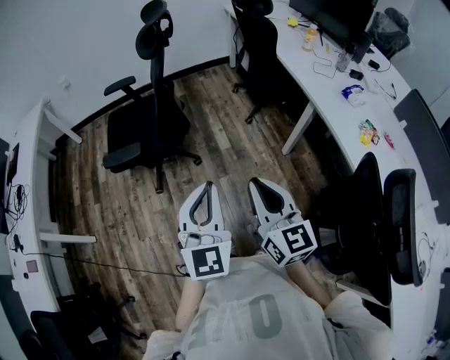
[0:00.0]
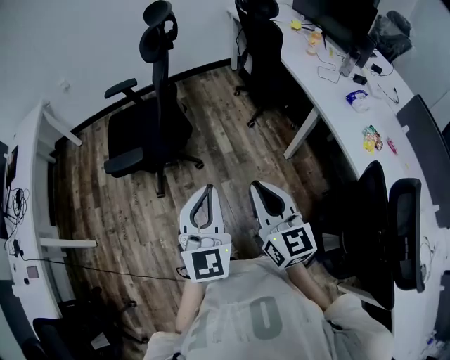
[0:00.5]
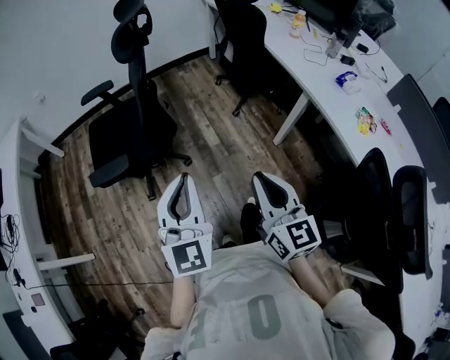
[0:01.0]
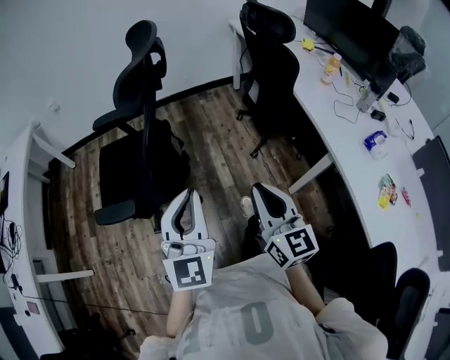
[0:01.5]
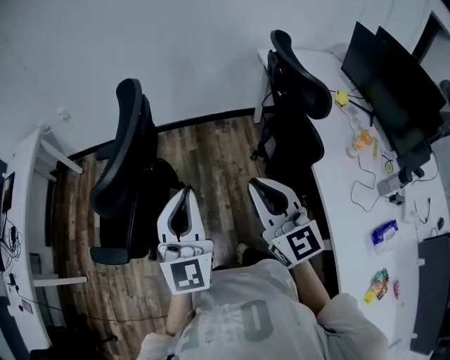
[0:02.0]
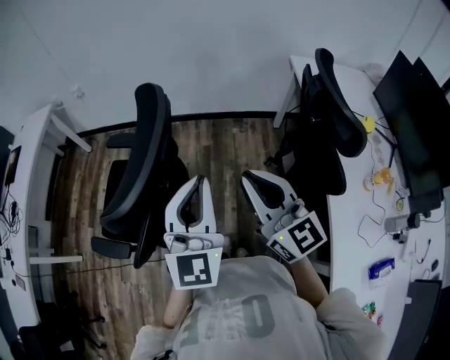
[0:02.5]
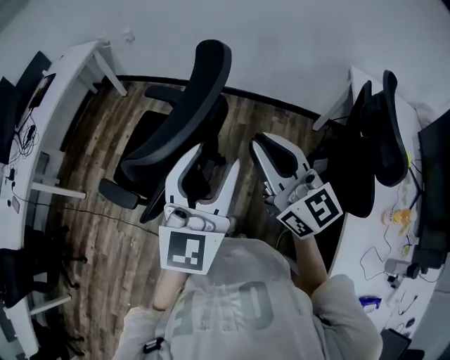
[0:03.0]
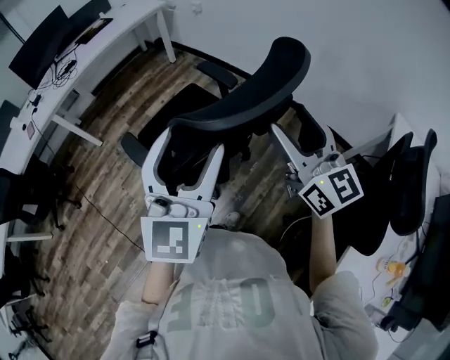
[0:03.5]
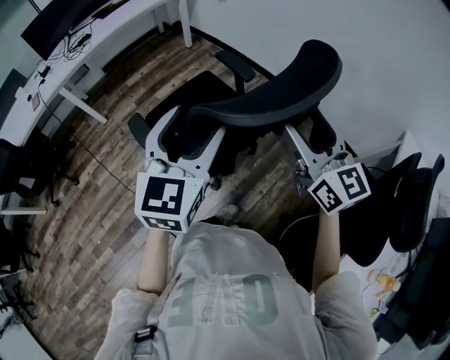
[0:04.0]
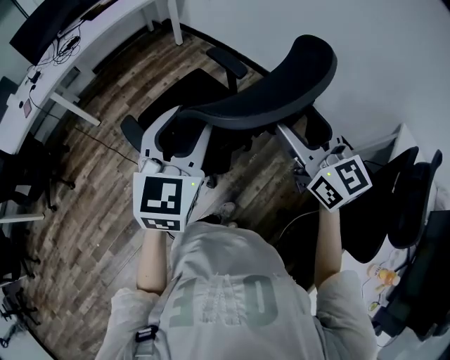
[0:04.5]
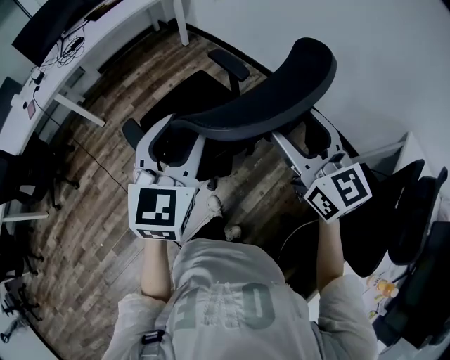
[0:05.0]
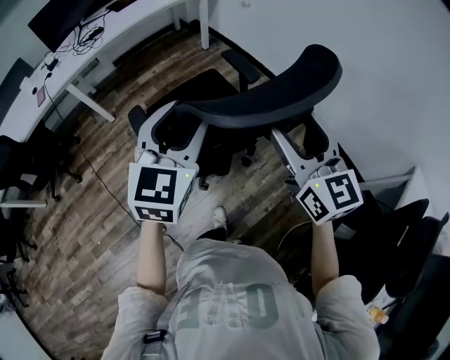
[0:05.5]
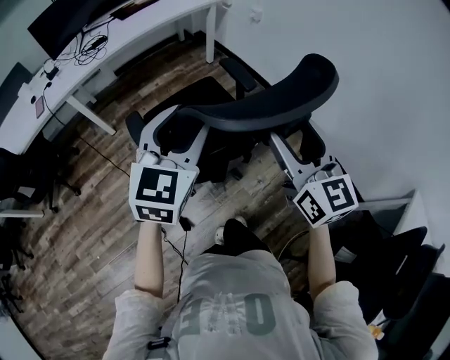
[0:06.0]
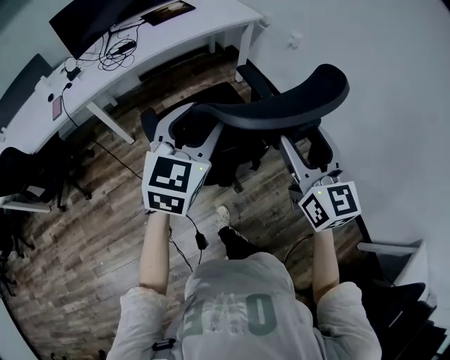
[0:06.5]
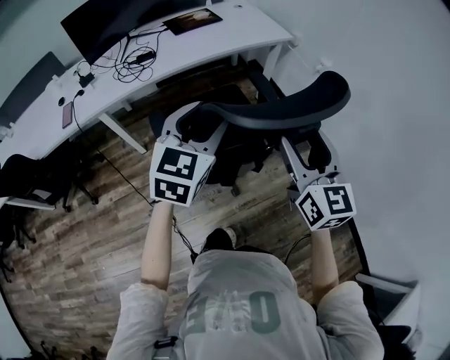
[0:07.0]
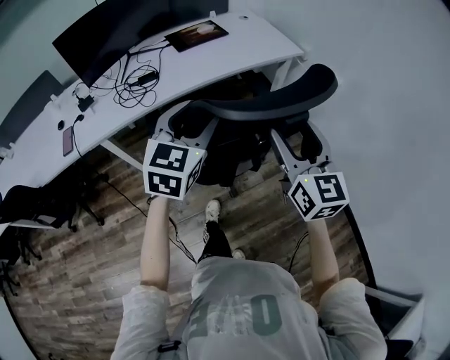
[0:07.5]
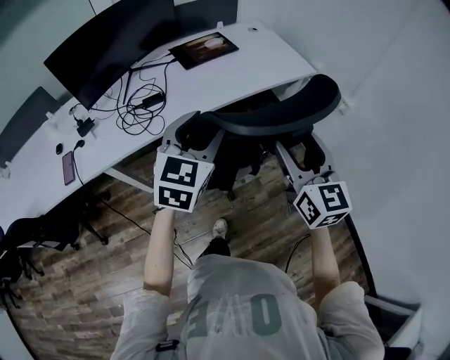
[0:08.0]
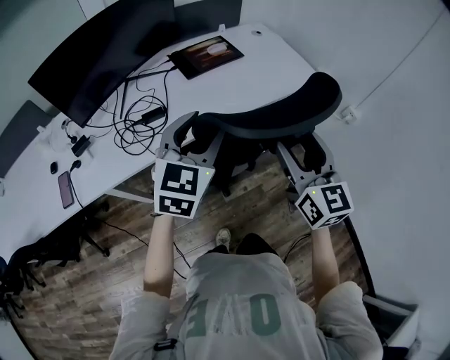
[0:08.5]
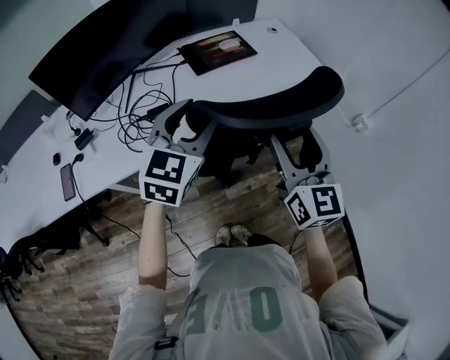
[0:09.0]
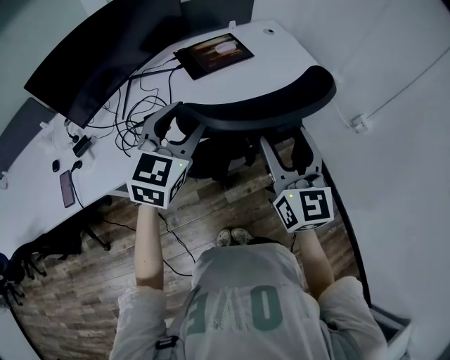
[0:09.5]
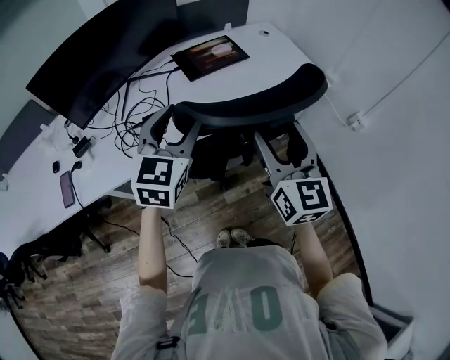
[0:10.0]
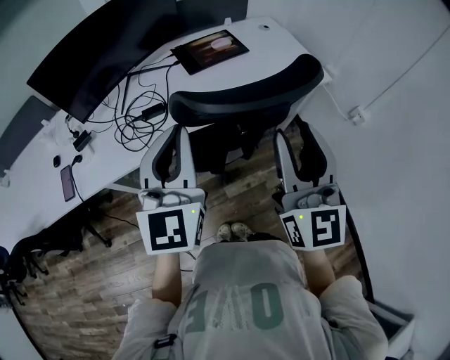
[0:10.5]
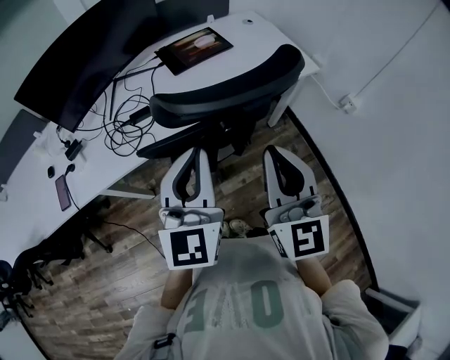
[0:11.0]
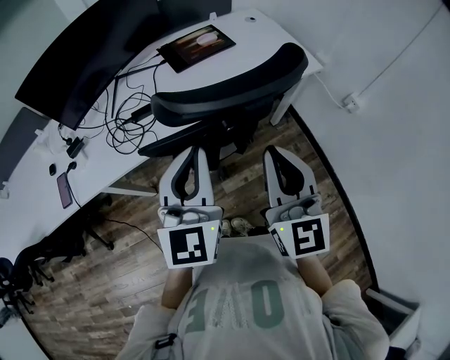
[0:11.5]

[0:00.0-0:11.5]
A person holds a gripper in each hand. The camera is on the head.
0:00.0 to 0:02.0: The pair of grippers is taken forward, about 50 cm. The right gripper changes its angle by some 20 degrees.
0:02.0 to 0:04.0: The left gripper changes place by roughly 20 cm, turns by roughly 40 degrees, and opens up. Meanwhile the right gripper moves approximately 25 cm, rotates approximately 50 degrees, and opens.
0:04.0 to 0:06.0: Both grippers travel together forward and to the left, some 25 cm.
0:06.0 to 0:07.5: The pair of grippers is taken forward and to the left, about 50 cm.
0:07.5 to 0:09.5: Both grippers travel together forward and to the left, about 30 cm.
0:09.5 to 0:11.5: The left gripper goes roughly 15 cm backward and to the right, changes its angle by some 20 degrees, and closes up. Meanwhile the right gripper travels backward by approximately 10 cm, and closes its fingers.

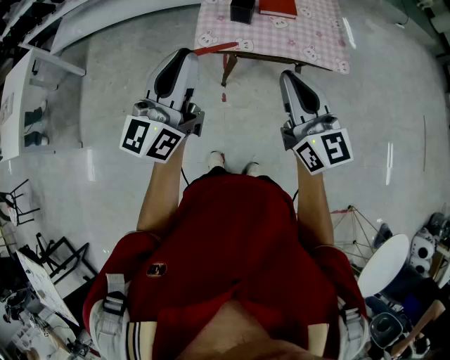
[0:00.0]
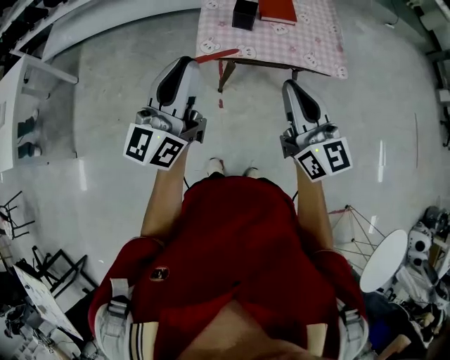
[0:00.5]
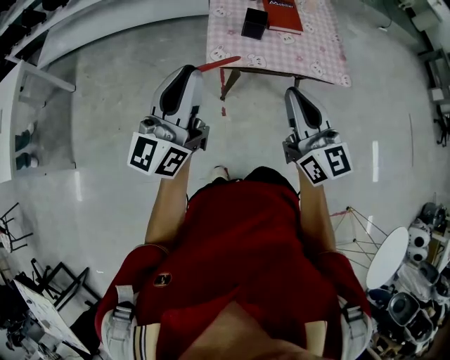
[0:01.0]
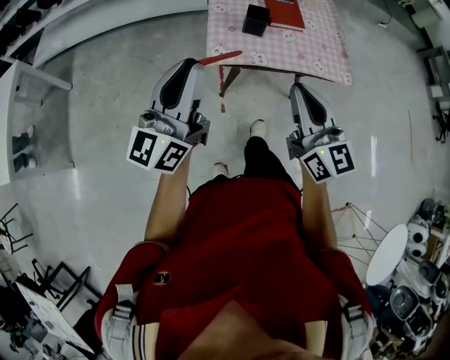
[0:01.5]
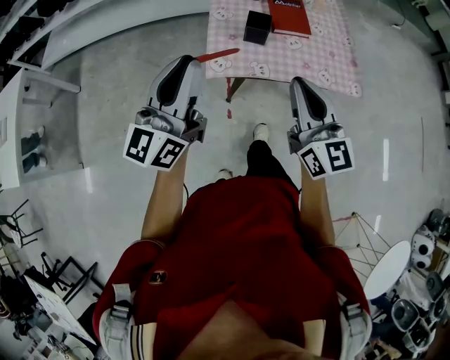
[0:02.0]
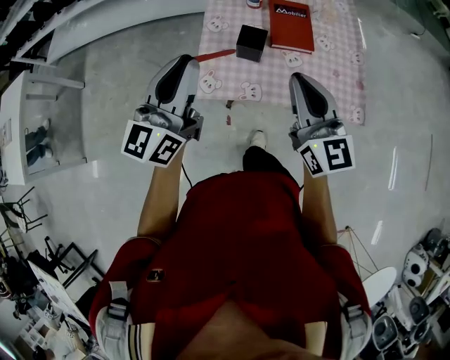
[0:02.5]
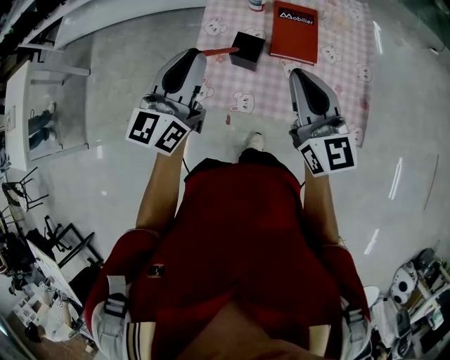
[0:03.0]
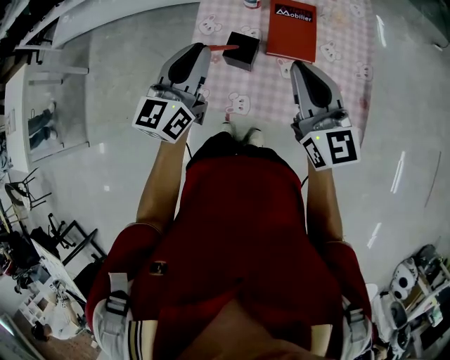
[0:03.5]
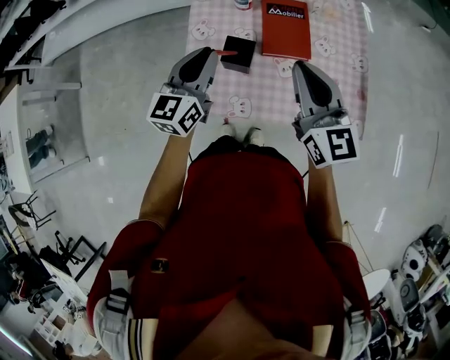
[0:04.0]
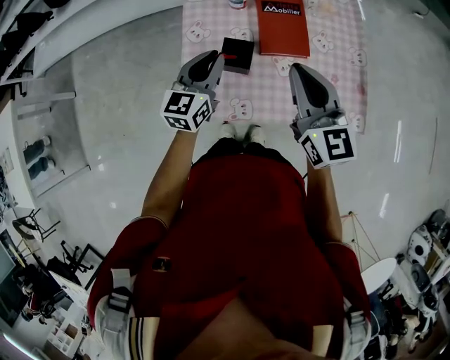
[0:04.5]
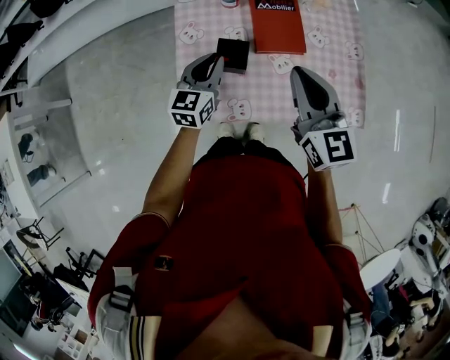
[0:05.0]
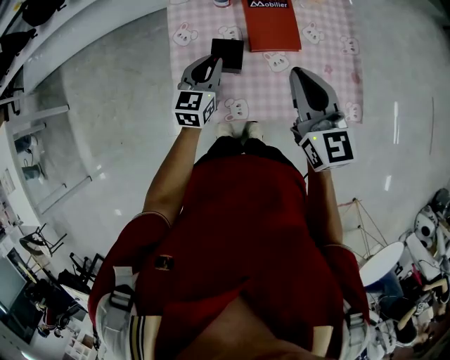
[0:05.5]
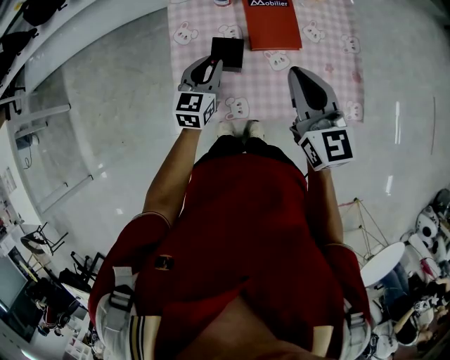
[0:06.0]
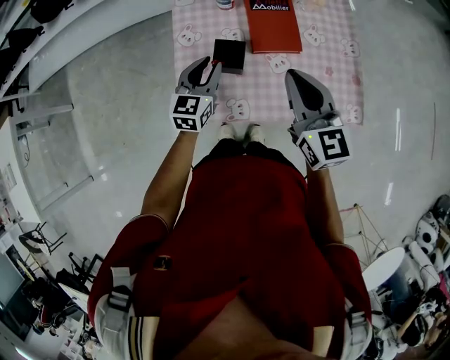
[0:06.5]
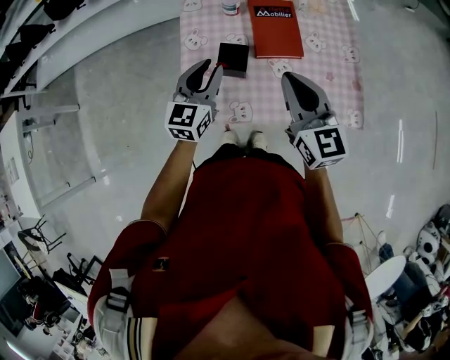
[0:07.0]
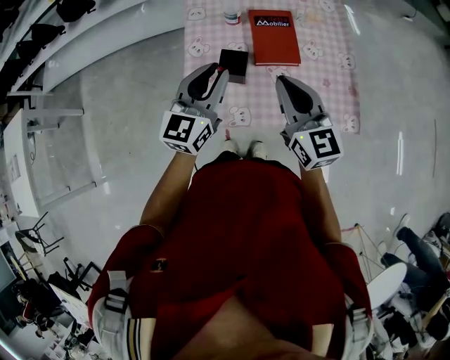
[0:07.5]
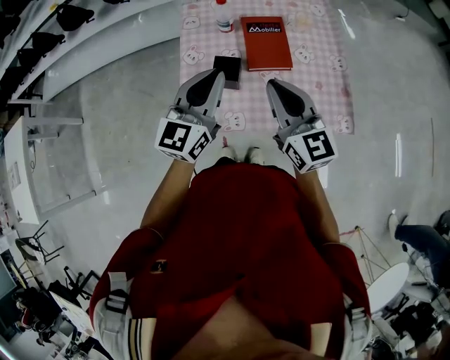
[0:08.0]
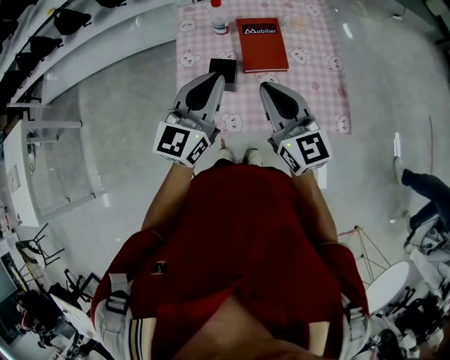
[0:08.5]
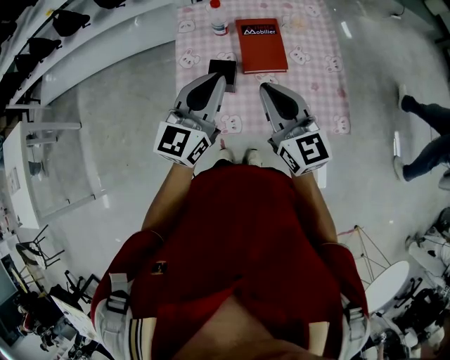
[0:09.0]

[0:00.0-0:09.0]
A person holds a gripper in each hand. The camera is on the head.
0:00.0 to 0:02.0: The grippers both shift forward and to the left by about 15 cm.
0:02.0 to 0:04.5: The left gripper shifts some 40 cm forward, downward and to the right, and angles its fingers downward, by about 30 degrees, while the right gripper heads forward, covering approximately 30 cm.
0:04.5 to 0:07.0: The left gripper travels downward and back again, roughly 10 cm each way.
0:07.0 to 0:09.0: The right gripper changes place by roughly 5 cm. The left gripper travels upward and to the right by about 15 cm.

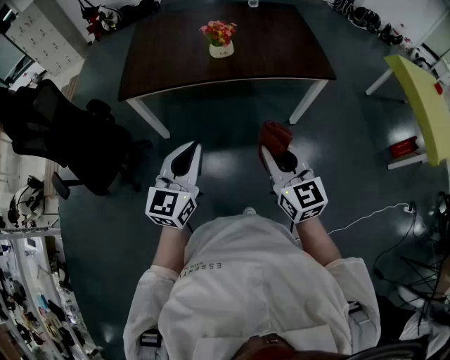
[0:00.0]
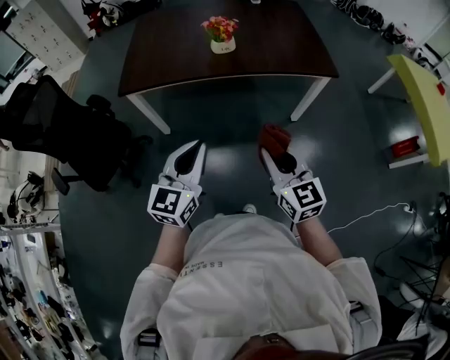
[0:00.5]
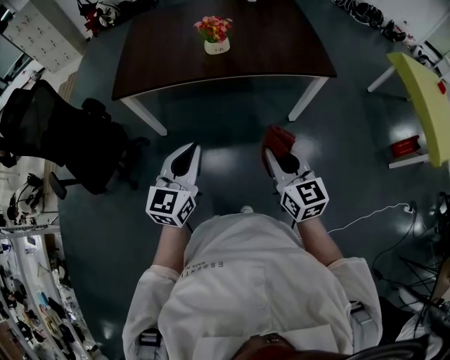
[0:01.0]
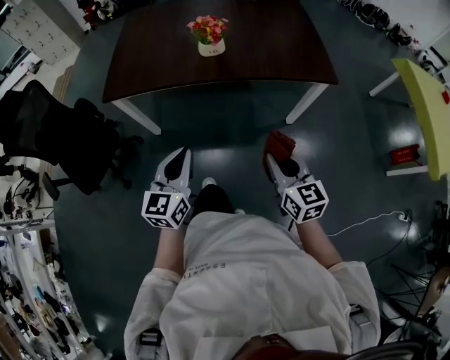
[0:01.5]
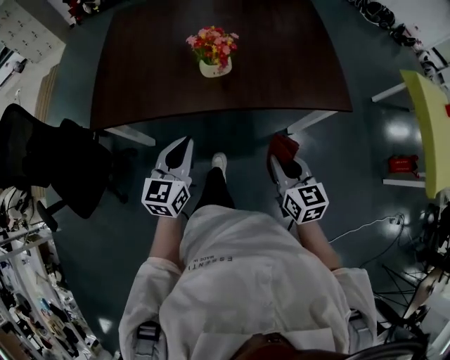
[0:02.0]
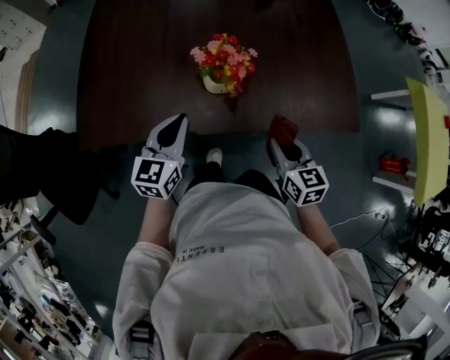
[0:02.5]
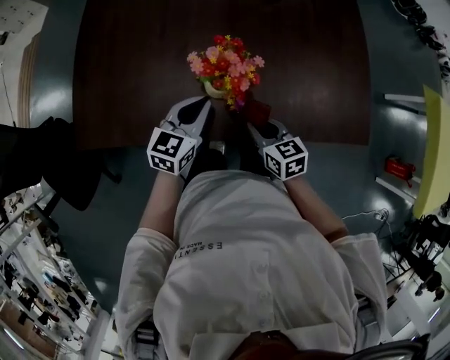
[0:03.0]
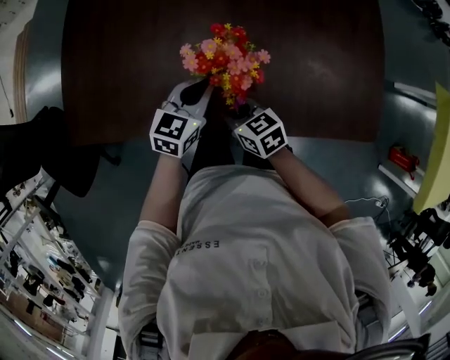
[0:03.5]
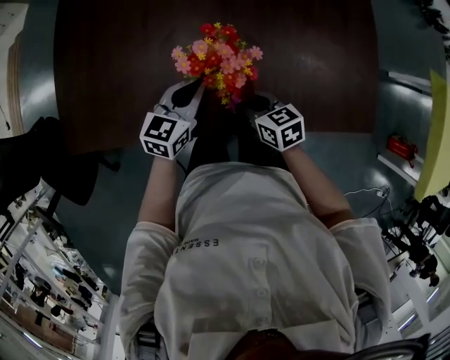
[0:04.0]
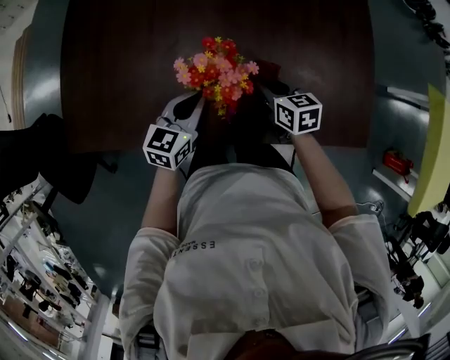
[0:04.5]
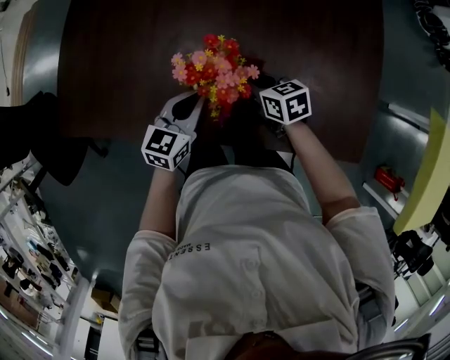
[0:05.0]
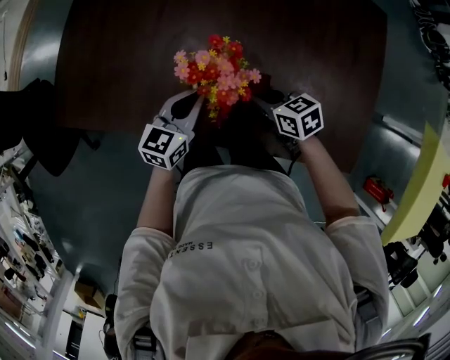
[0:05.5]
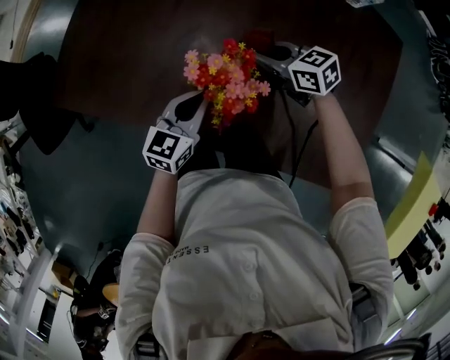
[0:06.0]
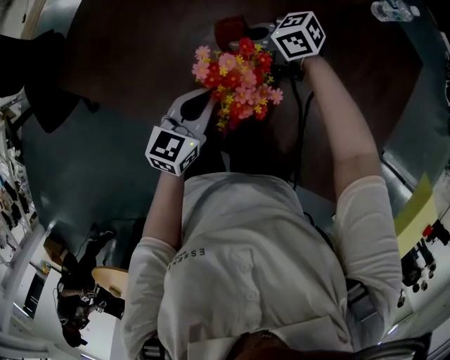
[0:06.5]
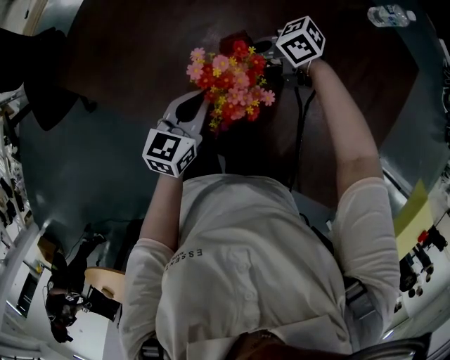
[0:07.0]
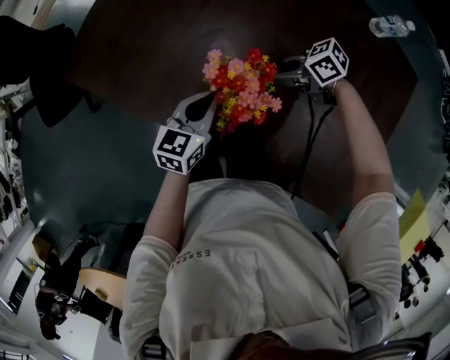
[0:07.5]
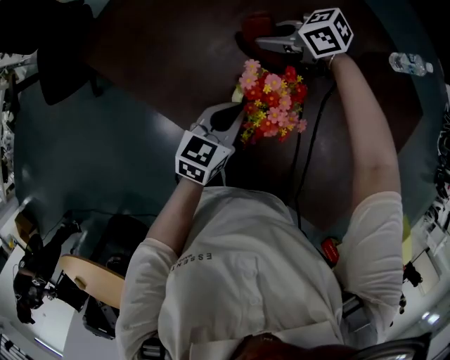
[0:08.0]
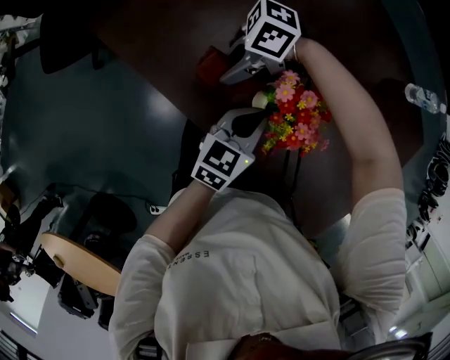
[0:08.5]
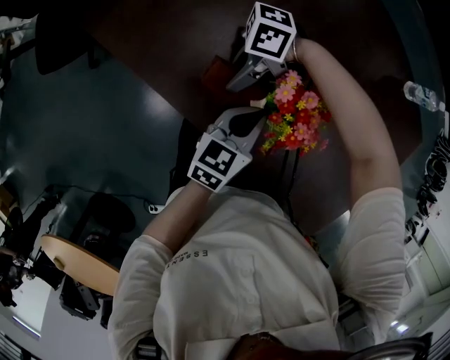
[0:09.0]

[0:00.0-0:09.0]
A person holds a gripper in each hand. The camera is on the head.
0:00.0 to 0:02.0: The right gripper shifts roughly 30 cm forward and downward, and changes its angle by about 20 degrees. Meanwhile the left gripper shifts approximately 30 cm forward.
0:02.0 to 0:04.5: Both grippers move forward, roughly 35 cm. The right gripper swivels approximately 20 degrees.
0:04.5 to 0:07.0: The left gripper turns by roughly 30 degrees. Meanwhile the right gripper moves about 15 cm, and rotates approximately 80 degrees.
0:07.0 to 0:09.0: The right gripper shifts by approximately 15 cm, and rotates roughly 50 degrees.
